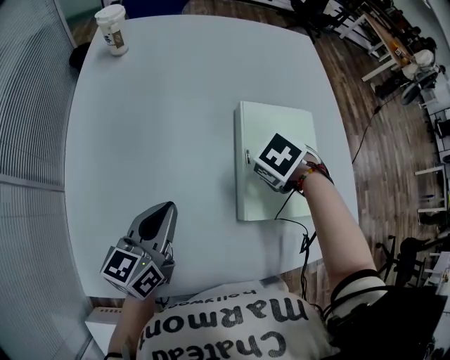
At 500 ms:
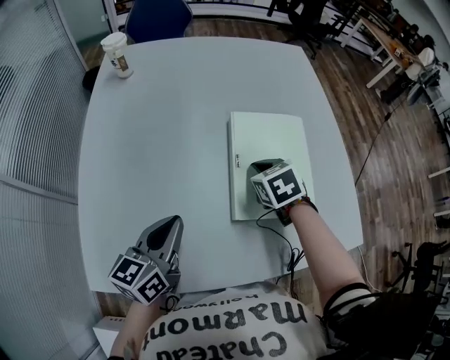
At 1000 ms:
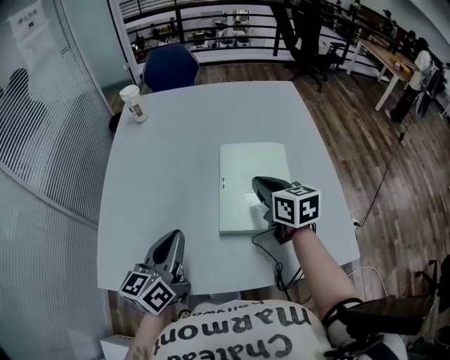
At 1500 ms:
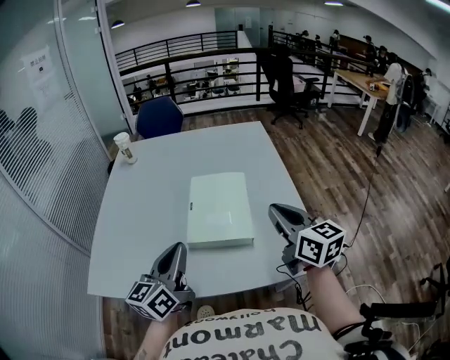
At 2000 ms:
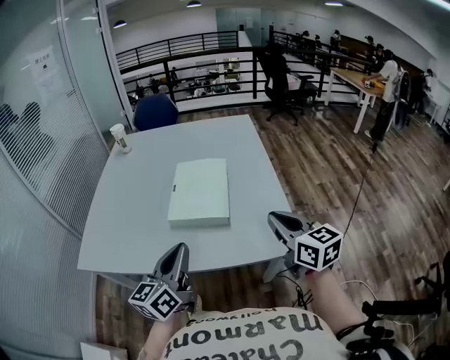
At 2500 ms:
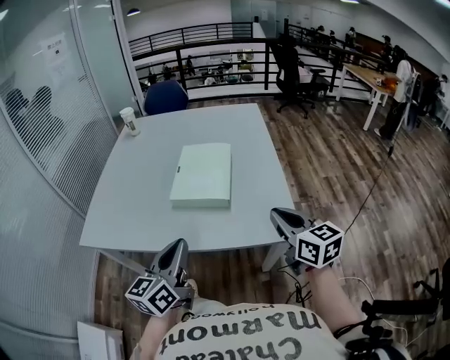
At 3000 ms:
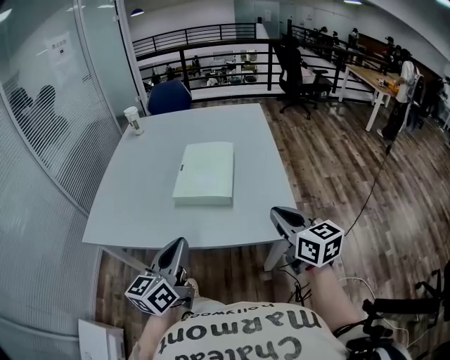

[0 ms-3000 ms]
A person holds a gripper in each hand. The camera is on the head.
0 ms to 1500 ms: The left gripper changes place by approximately 25 cm; the right gripper shifts by some 35 cm, and tips its fingers upward by approximately 80 degrees.
1500 ms to 3000 ms: The grippers both shift backward by roughly 15 cm.

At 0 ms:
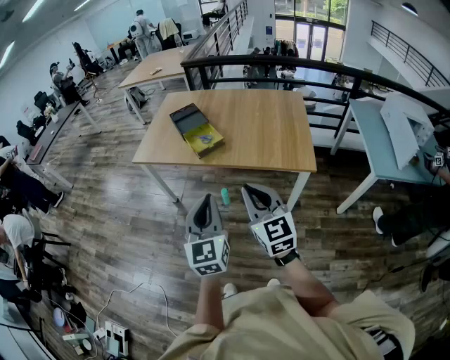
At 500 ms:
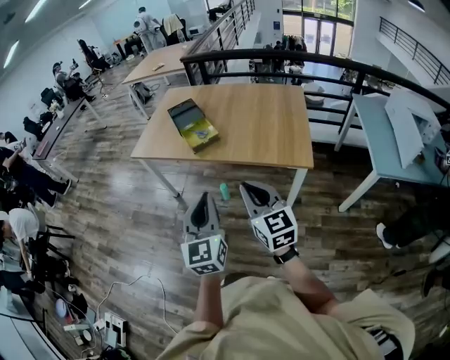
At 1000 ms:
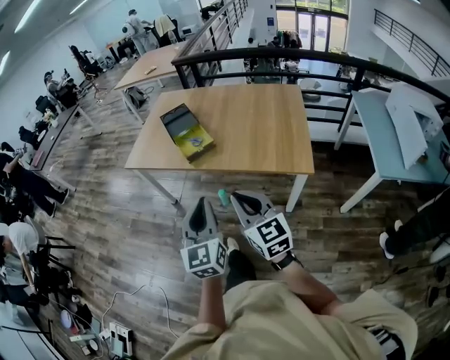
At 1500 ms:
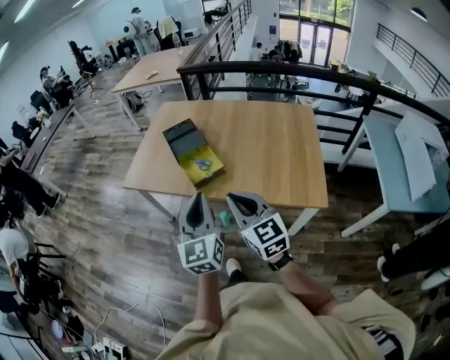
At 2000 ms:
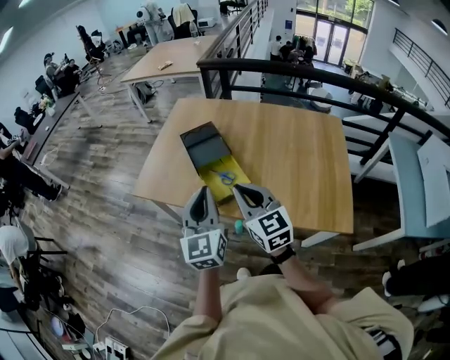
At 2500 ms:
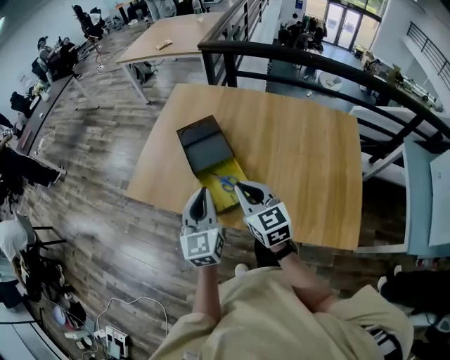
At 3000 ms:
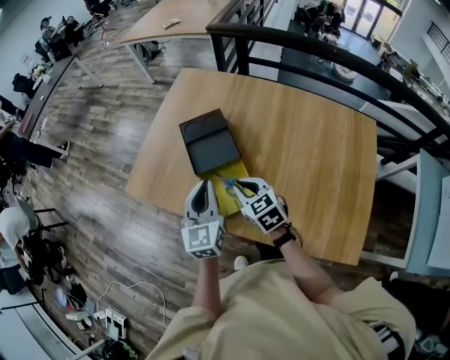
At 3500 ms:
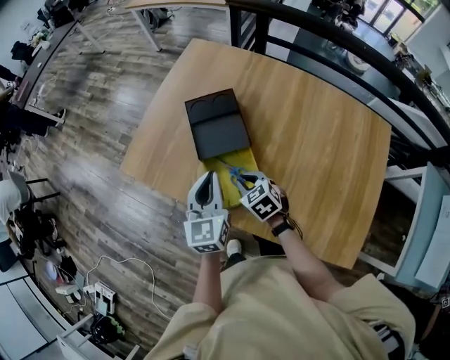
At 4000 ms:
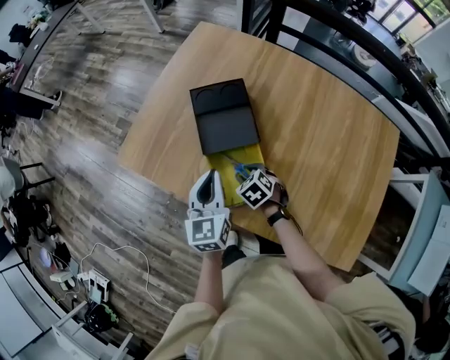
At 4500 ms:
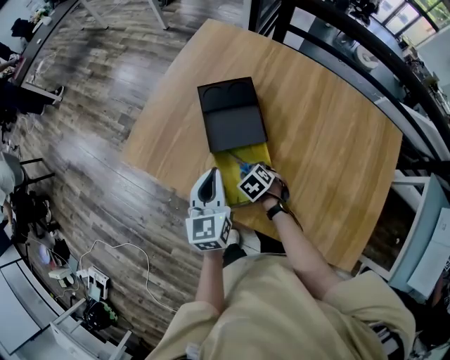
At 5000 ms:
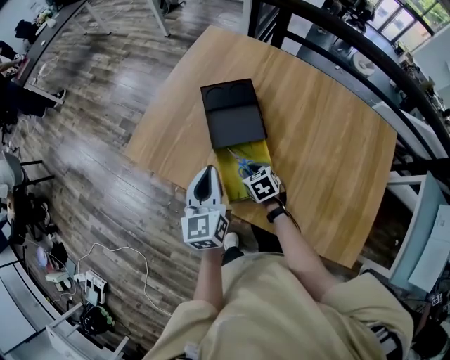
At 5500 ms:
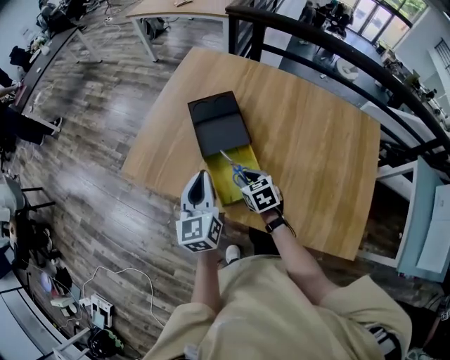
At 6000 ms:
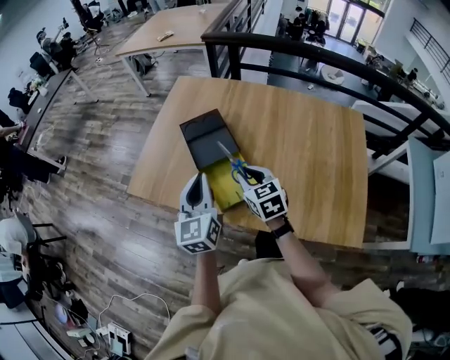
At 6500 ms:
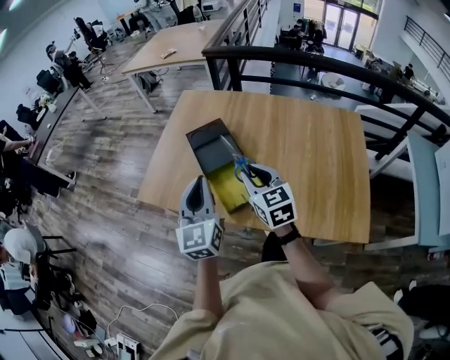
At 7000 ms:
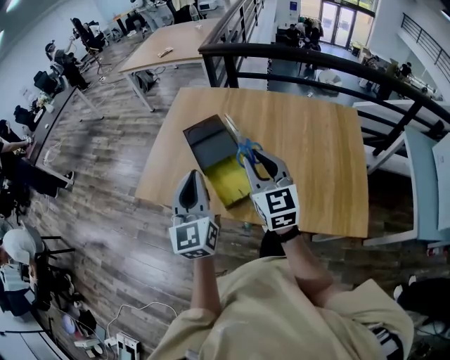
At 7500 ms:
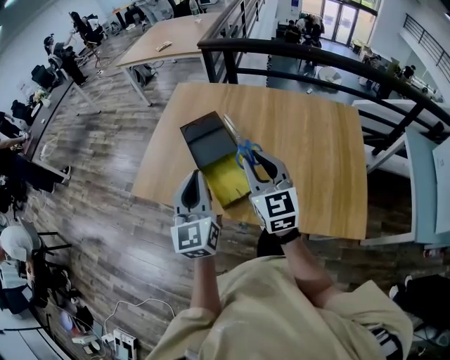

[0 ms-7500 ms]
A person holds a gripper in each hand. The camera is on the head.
0 ms to 2000 ms: The two grippers travel together, forward, roughly 40 cm.
2000 ms to 4000 ms: The left gripper goes roughly 30 cm forward and downward, and changes its angle by roughly 20 degrees. The right gripper travels downward and forward by roughly 40 cm, tilts its fingers some 60 degrees downward, and opens.
4000 ms to 5500 ms: Both grippers move upward, about 5 cm. The right gripper swivels about 30 degrees.
5500 ms to 7500 ms: The left gripper shifts about 15 cm upward and backward. The right gripper heads upward, covering about 25 cm, and angles its fingers upward, by some 40 degrees.

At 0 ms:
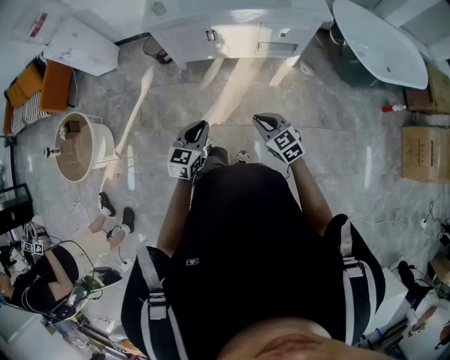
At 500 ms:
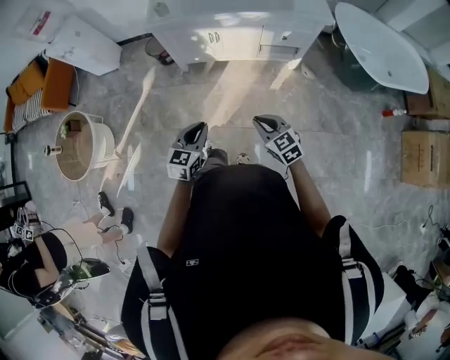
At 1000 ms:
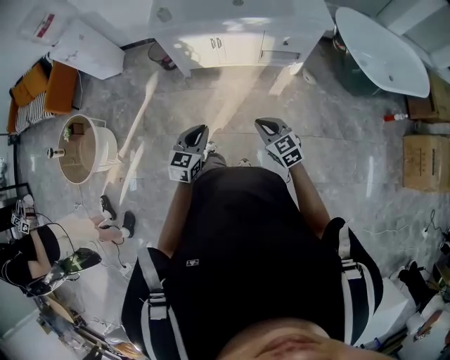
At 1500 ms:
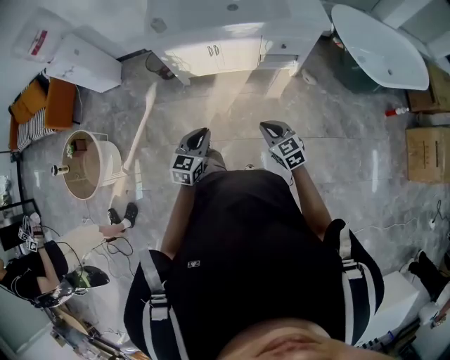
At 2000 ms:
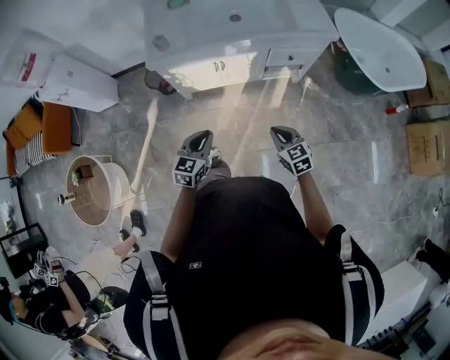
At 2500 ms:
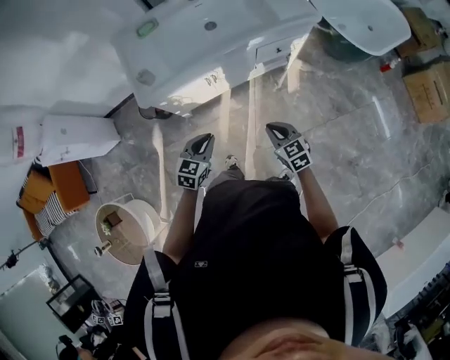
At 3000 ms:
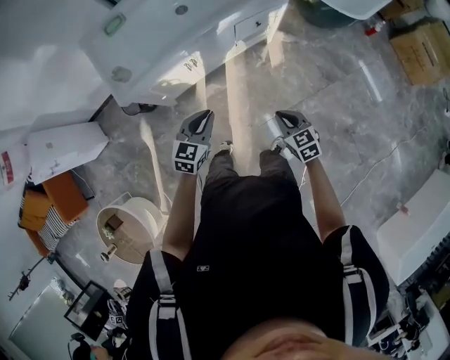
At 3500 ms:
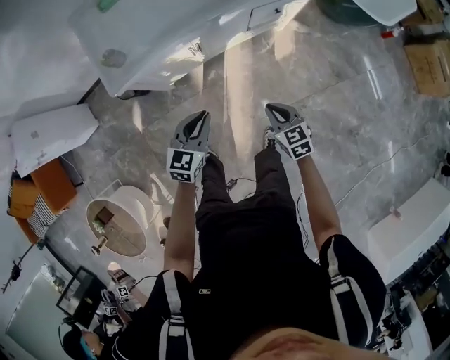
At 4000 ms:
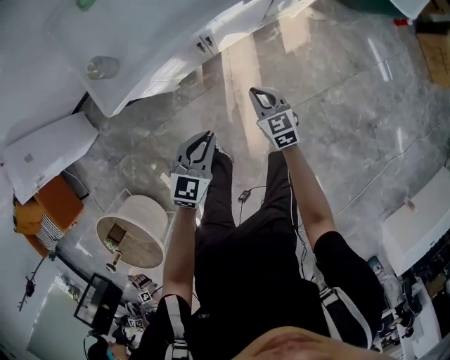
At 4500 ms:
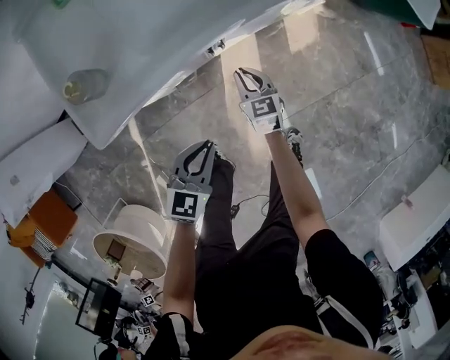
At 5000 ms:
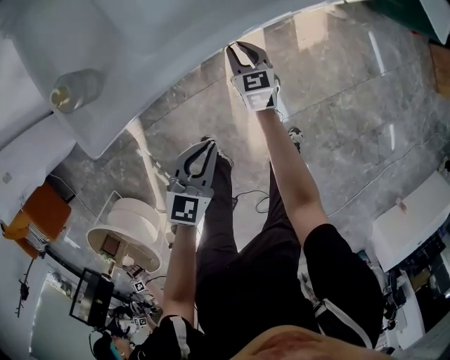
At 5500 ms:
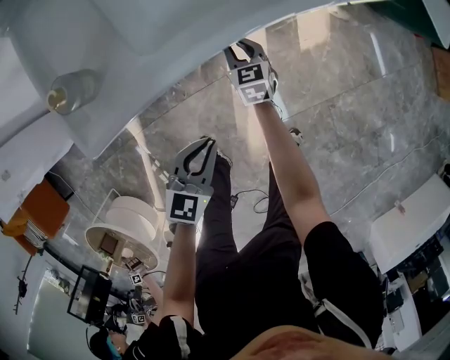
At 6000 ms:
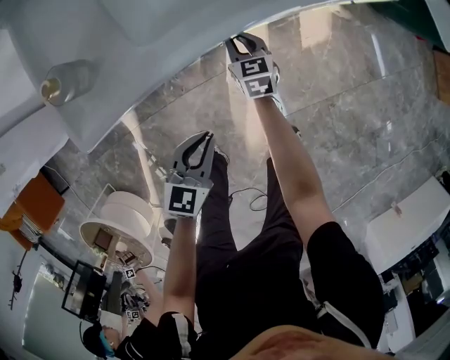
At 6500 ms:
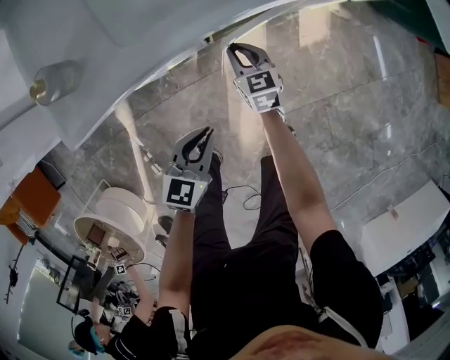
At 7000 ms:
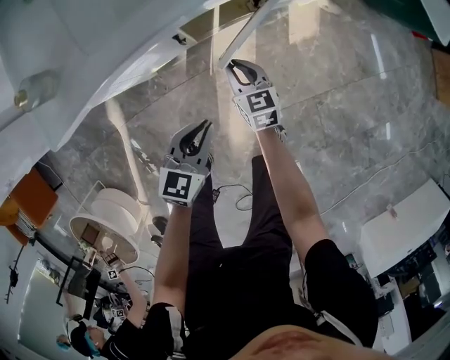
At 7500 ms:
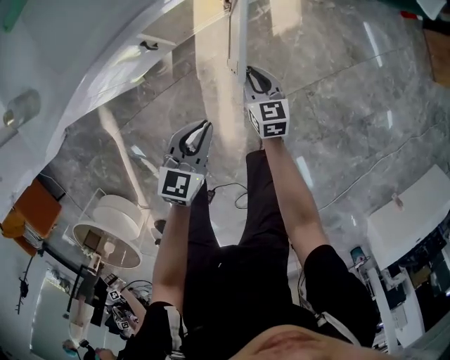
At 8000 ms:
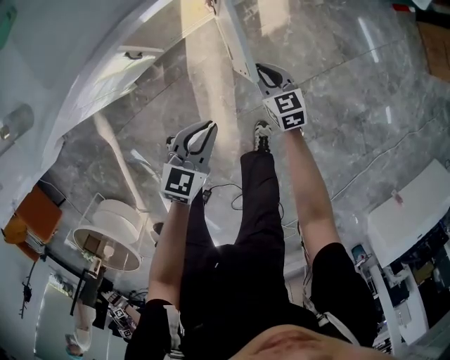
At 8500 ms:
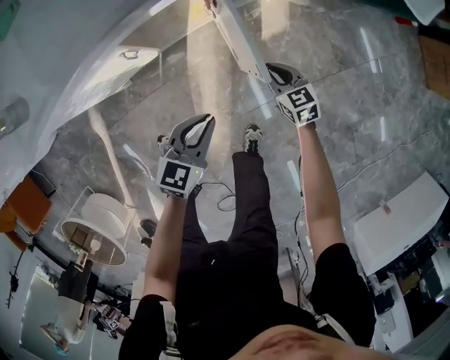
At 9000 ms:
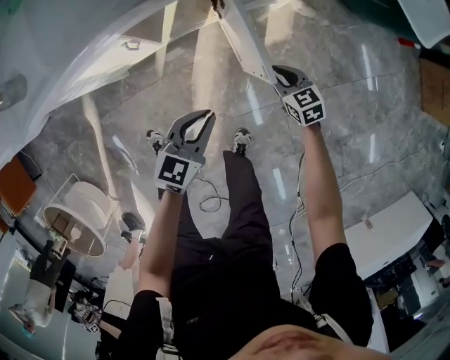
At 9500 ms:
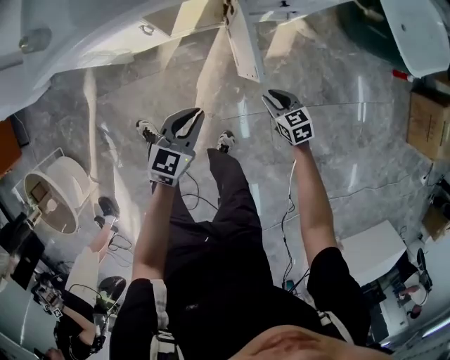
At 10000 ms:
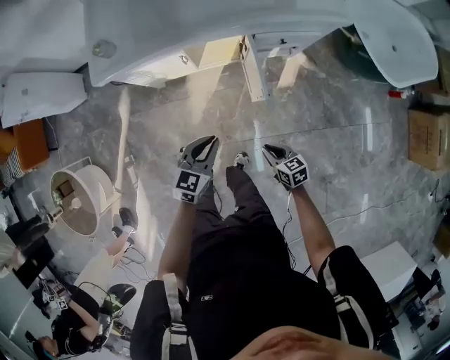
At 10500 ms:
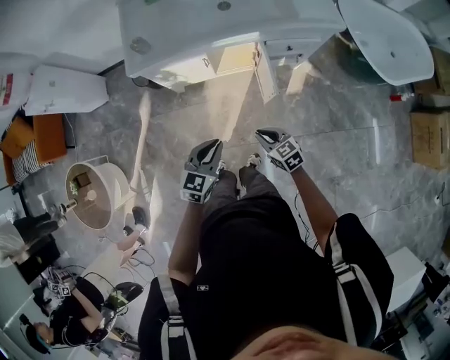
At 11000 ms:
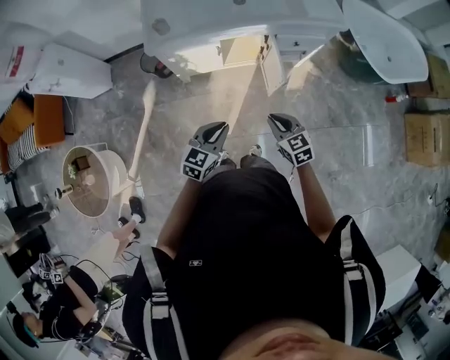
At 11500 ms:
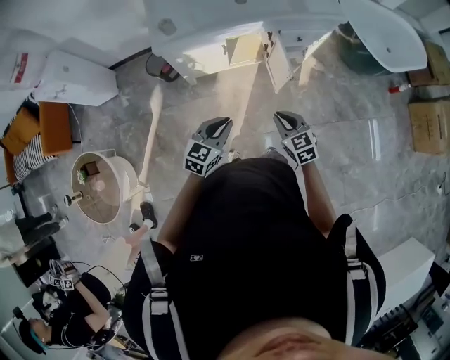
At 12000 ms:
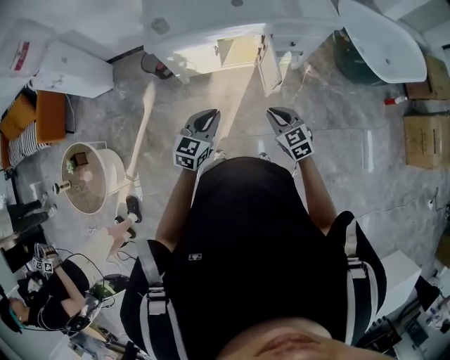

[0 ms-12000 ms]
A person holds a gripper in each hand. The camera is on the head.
0 ms to 2000 ms: Both grippers move forward, approximately 15 cm.
2000 ms to 4000 ms: The left gripper heads downward, forward and to the left, covering approximately 25 cm, and rotates about 30 degrees; the right gripper moves downward, to the left and forward, about 35 cm, and turns by approximately 20 degrees.
4000 ms to 6000 ms: The right gripper travels forward, downward and to the left by about 25 cm. Meanwhile the left gripper moves downward, forward and to the left, about 15 cm.
6000 ms to 8000 ms: The grippers both shift to the right by some 25 cm.
8000 ms to 10000 ms: The right gripper ends up some 25 cm from where it was, and rotates approximately 30 degrees. Meanwhile the left gripper travels upward by approximately 20 cm, and swivels approximately 20 degrees.
10000 ms to 12000 ms: The right gripper travels upward and to the left by about 25 cm, and rotates roughly 30 degrees, while the left gripper is displaced upward, to the left and backward by about 20 cm.

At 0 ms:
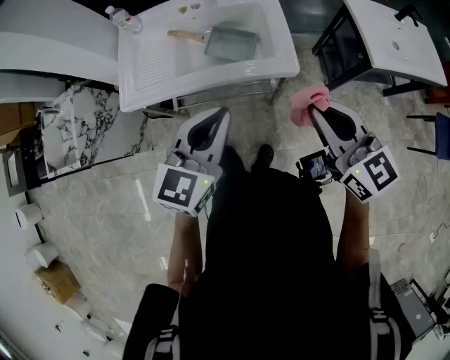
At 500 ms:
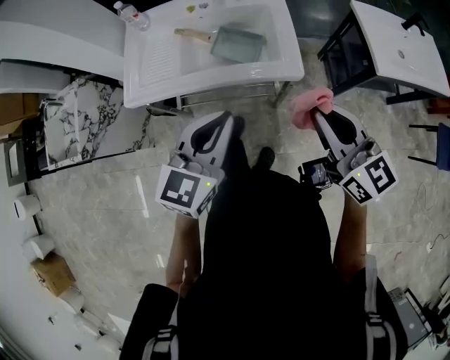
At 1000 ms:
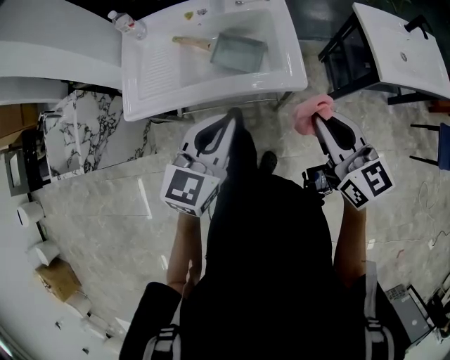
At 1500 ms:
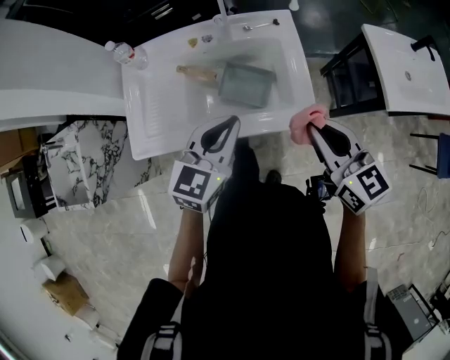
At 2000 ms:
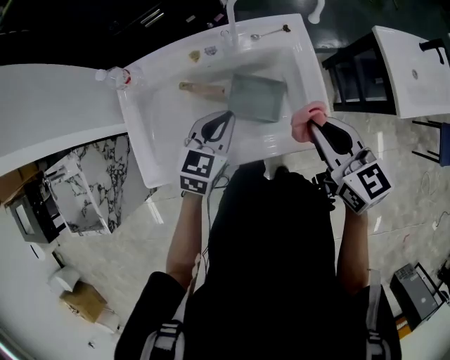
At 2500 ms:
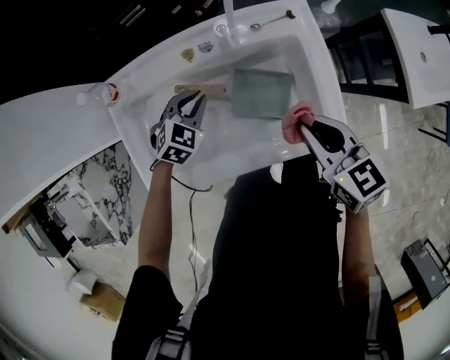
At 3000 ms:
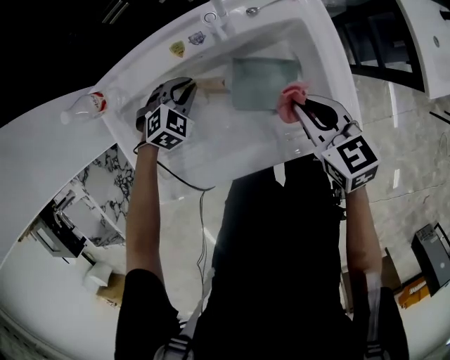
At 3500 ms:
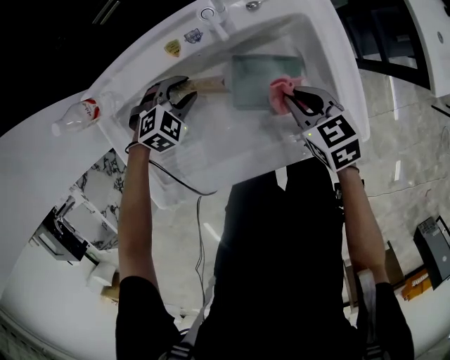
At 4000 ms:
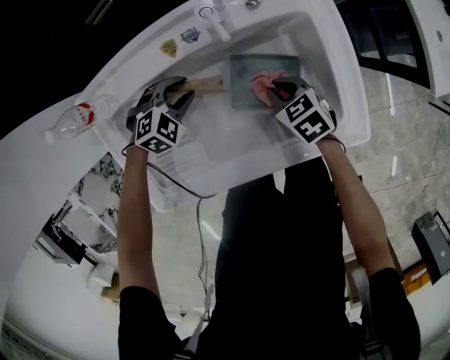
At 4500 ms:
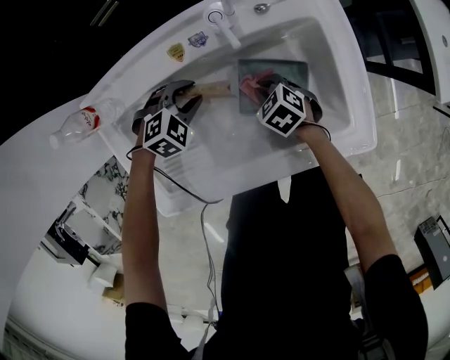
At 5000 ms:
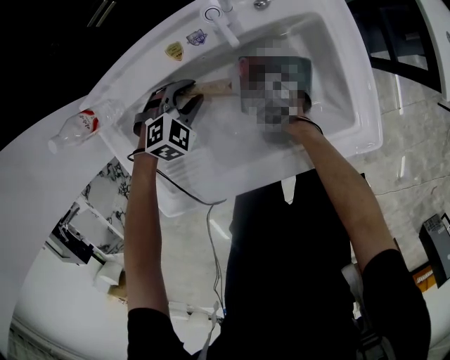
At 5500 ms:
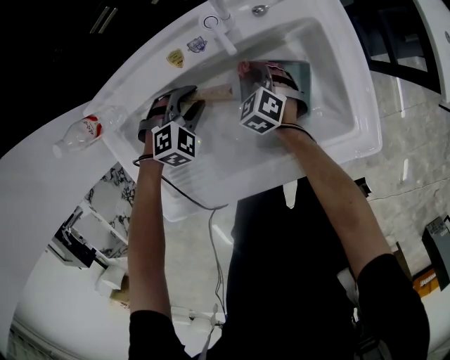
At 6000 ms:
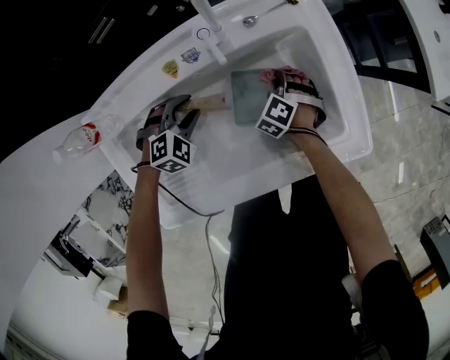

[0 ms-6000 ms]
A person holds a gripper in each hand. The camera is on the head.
0 ms to 2000 ms: The right gripper heads forward, covering roughly 25 cm; the left gripper moves forward and downward, roughly 35 cm.
2000 ms to 4000 ms: The left gripper heads downward, to the left and forward, covering approximately 30 cm, swivels some 50 degrees, and opens. Meanwhile the right gripper is displaced downward by roughly 30 cm, and angles its fingers downward, by about 40 degrees.
4000 ms to 6000 ms: The right gripper goes approximately 10 cm downward, and turns by roughly 50 degrees.
